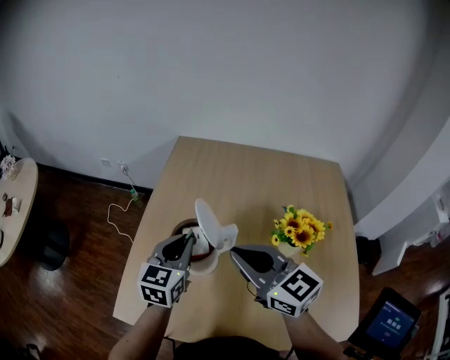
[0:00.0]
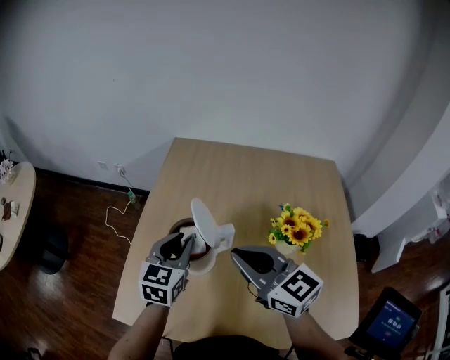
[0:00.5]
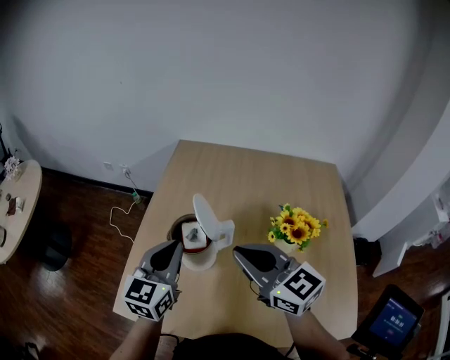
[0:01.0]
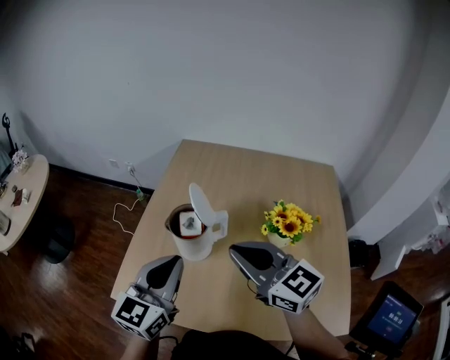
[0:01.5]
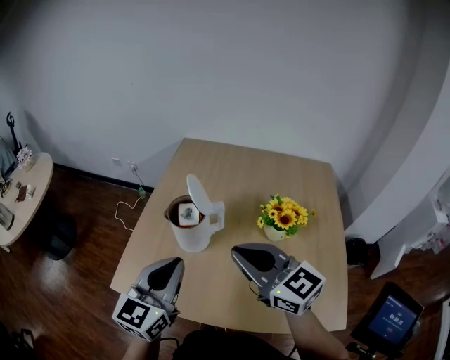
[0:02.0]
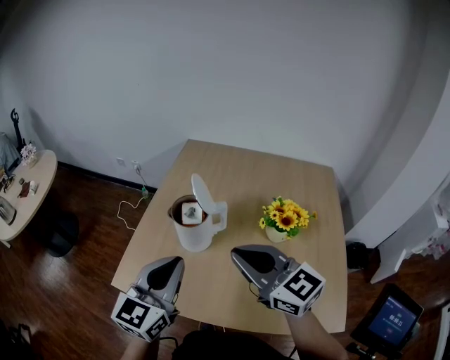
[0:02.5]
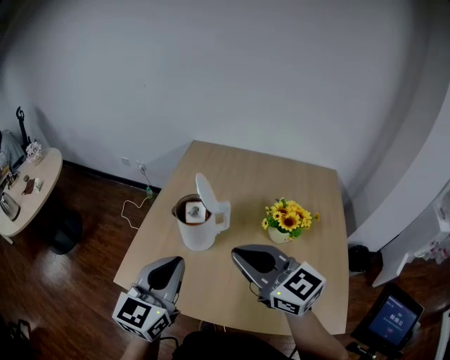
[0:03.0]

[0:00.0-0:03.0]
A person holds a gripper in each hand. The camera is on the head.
0:00.0 to 0:01.5: The left gripper travels backward and upward by roughly 20 cm, while the right gripper travels backward by some 5 cm.
0:01.5 to 0:03.0: The two grippers go some 5 cm backward.

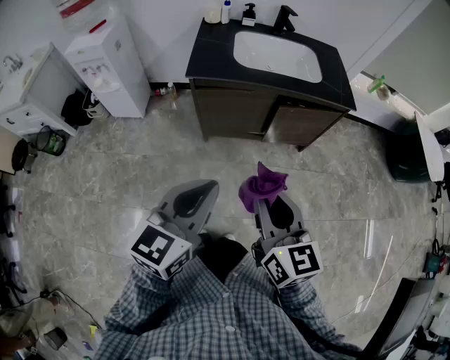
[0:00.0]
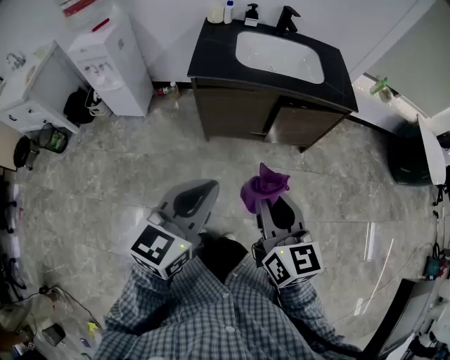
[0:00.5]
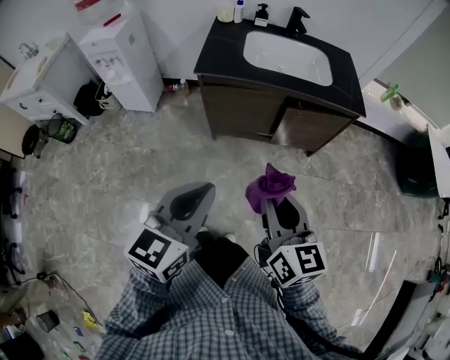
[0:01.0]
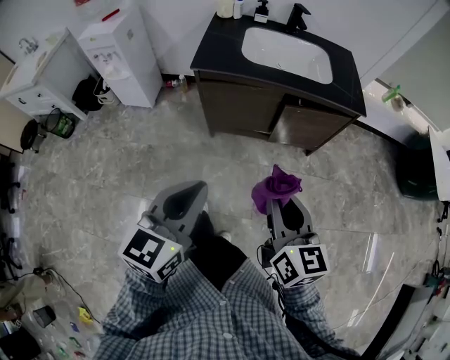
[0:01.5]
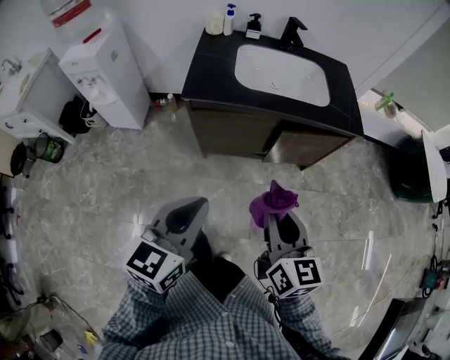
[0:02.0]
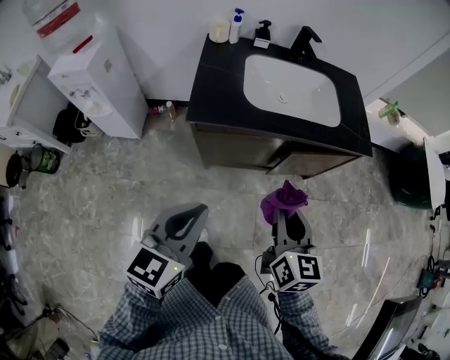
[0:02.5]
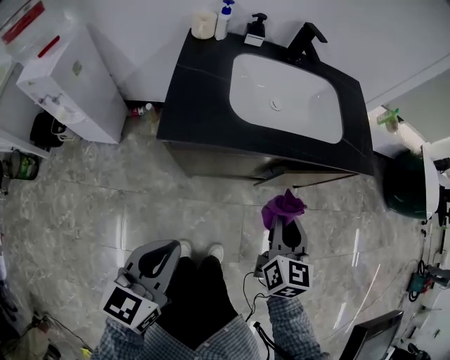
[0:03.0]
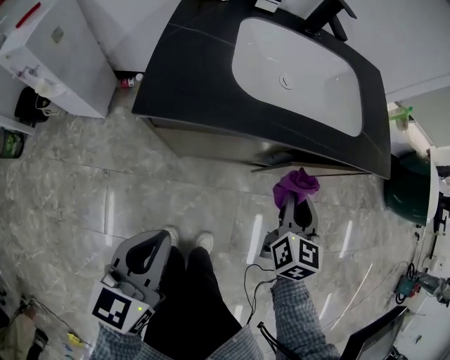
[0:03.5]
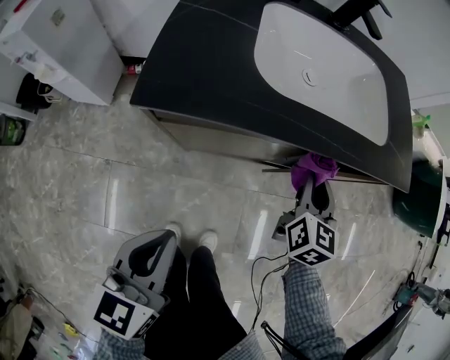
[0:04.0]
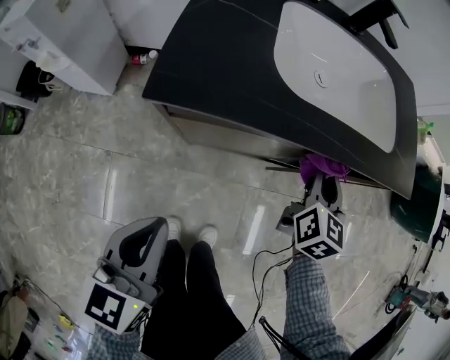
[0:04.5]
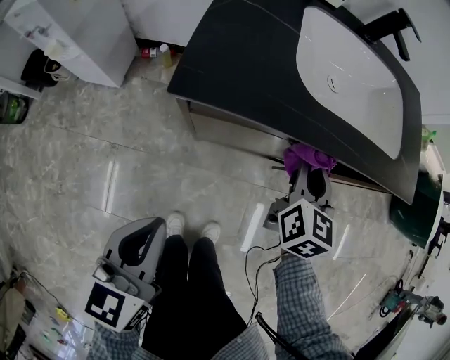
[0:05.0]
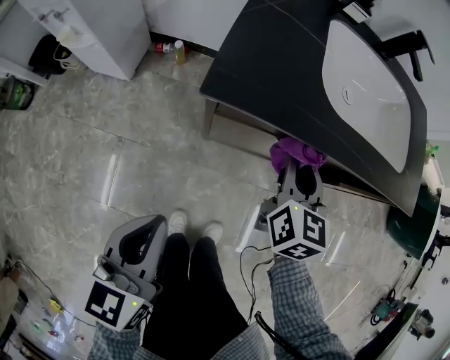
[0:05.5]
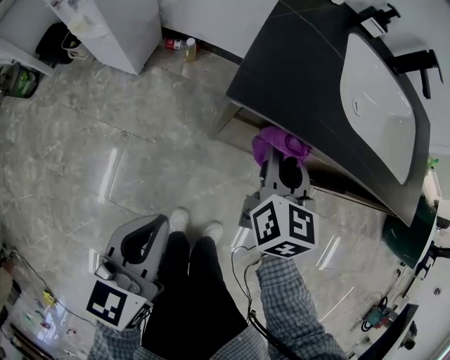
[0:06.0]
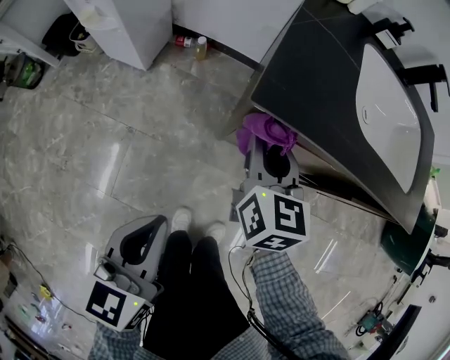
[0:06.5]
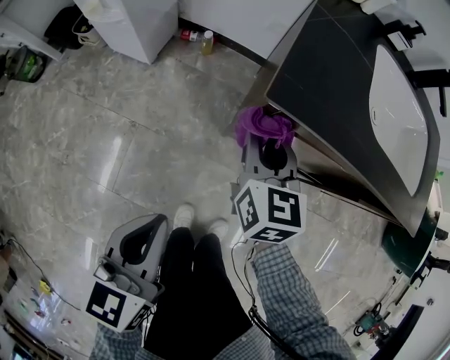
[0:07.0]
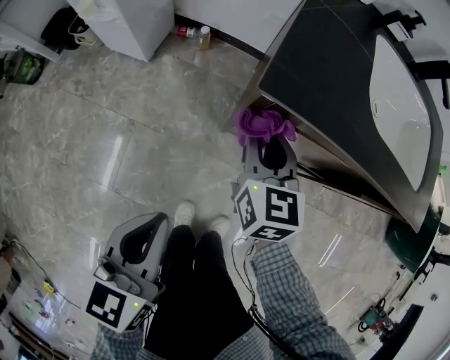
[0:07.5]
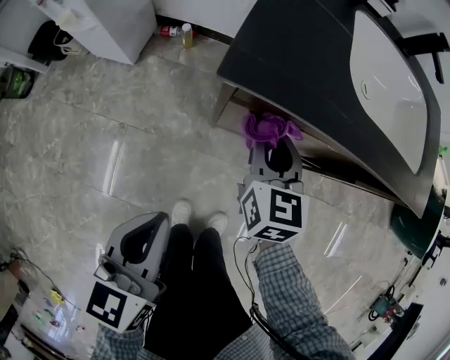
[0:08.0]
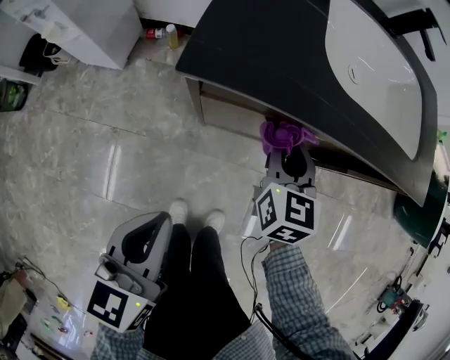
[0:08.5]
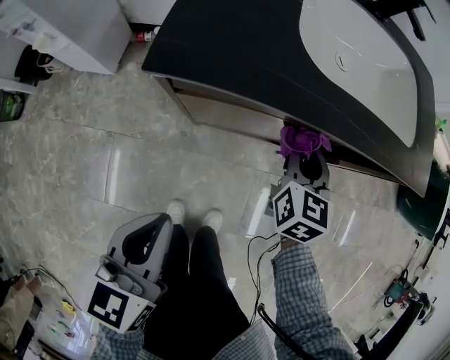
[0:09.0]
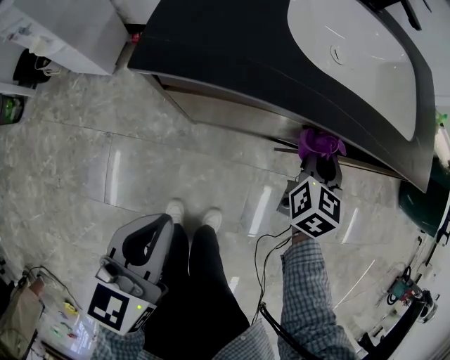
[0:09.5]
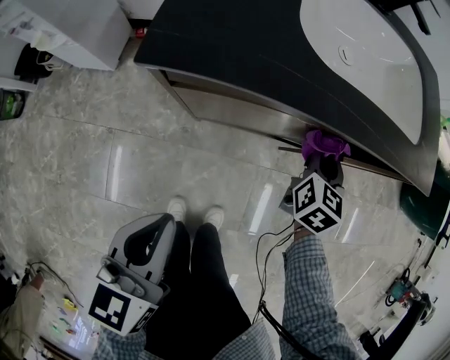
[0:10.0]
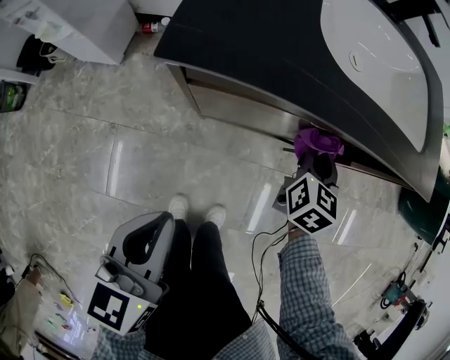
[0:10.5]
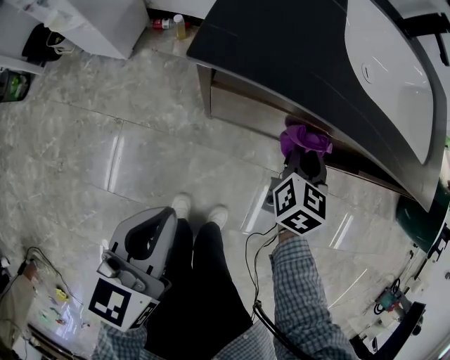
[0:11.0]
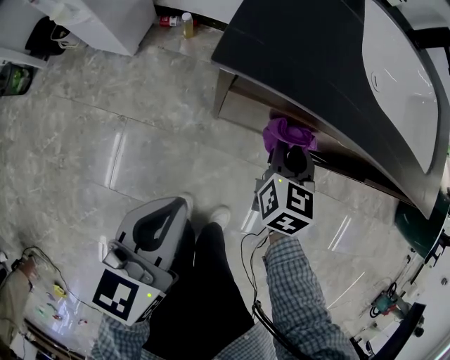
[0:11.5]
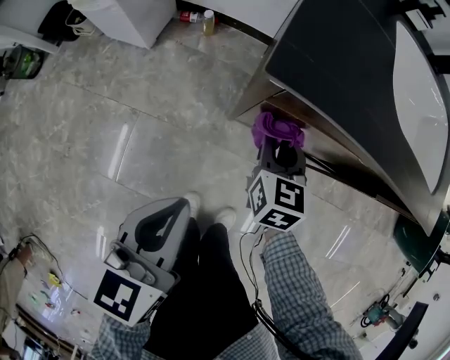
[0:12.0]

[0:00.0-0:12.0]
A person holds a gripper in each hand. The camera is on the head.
0:00.0 to 0:02.0: Both grippers travel together forward, approximately 10 cm.
0:02.0 to 0:04.0: The left gripper moves downward, forward and to the left, approximately 30 cm. The right gripper goes about 40 cm forward and downward, and rotates roughly 20 degrees.
0:04.0 to 0:06.0: The left gripper goes roughly 15 cm to the left; the right gripper heads to the left, covering about 25 cm.
0:06.0 to 0:08.0: The right gripper goes approximately 5 cm downward, and moves roughly 10 cm to the left and comes back.
0:08.0 to 0:10.0: The right gripper heads to the right, covering roughly 25 cm, and rotates approximately 30 degrees, while the left gripper heads to the right, covering some 10 cm.
0:10.0 to 0:12.0: The right gripper goes approximately 25 cm to the left, and rotates about 30 degrees. Meanwhile the left gripper heads to the left, covering about 10 cm.

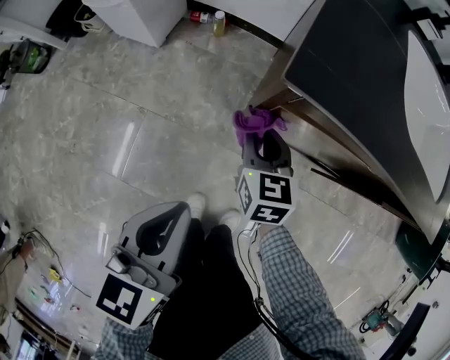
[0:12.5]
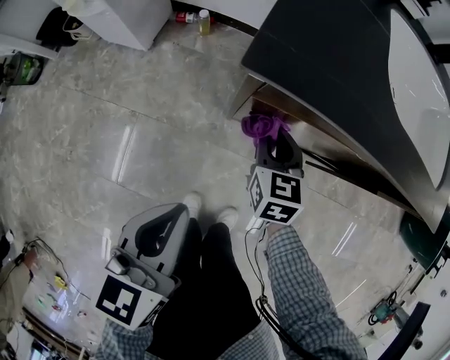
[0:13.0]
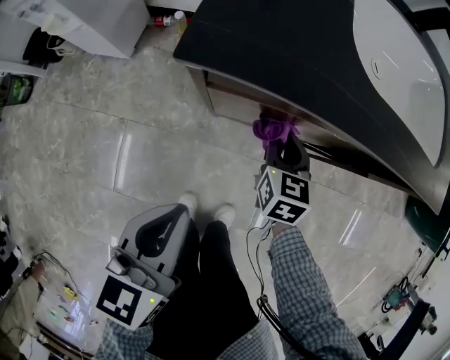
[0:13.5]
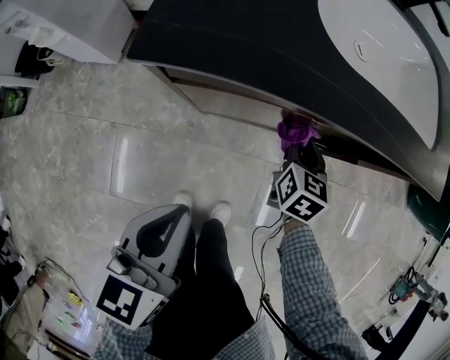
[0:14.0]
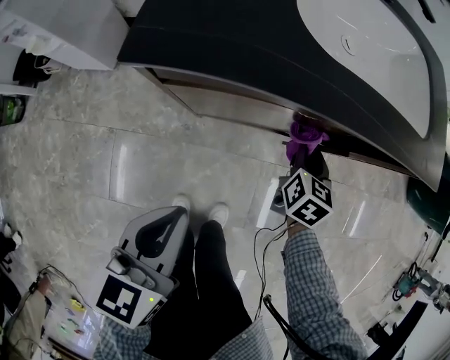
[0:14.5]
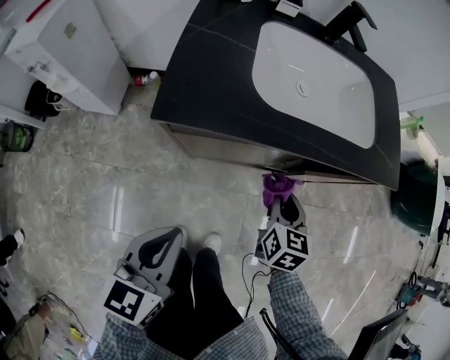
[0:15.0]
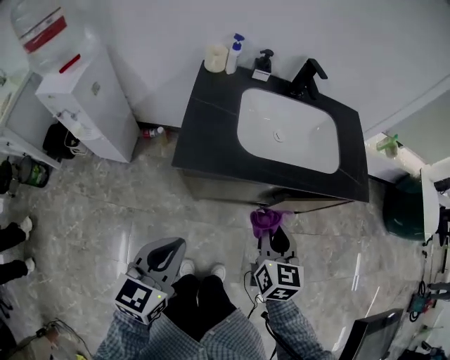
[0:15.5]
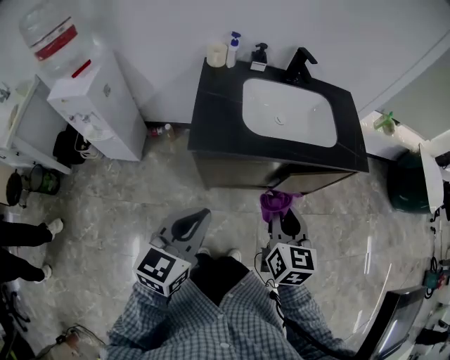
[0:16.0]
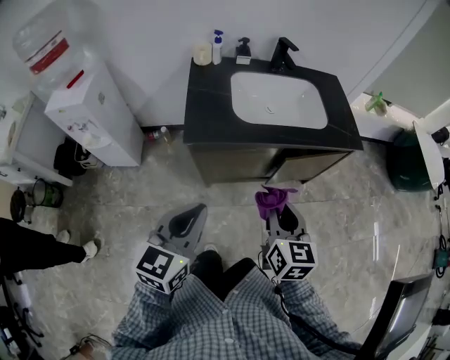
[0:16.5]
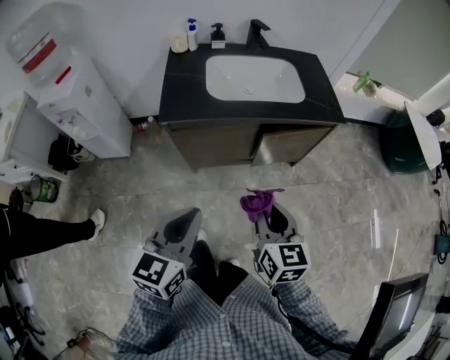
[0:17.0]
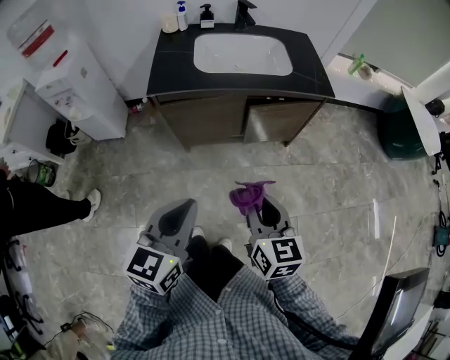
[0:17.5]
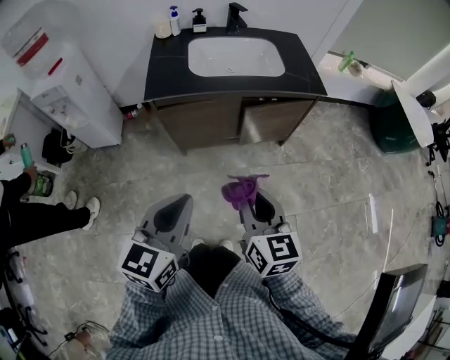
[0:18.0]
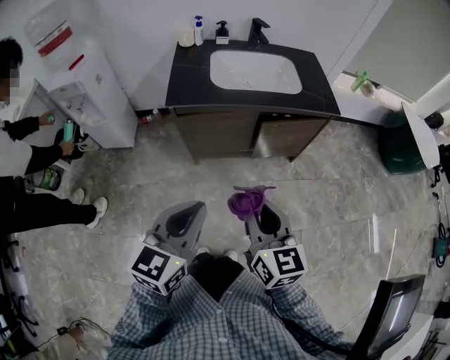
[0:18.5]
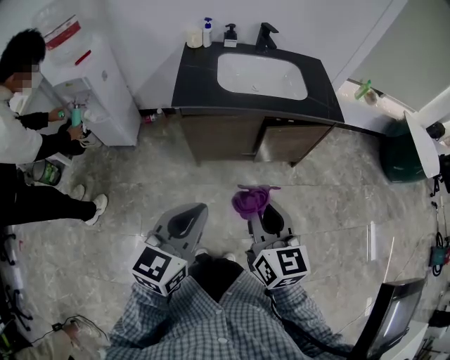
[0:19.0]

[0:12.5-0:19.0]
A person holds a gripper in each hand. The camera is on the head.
0:12.5 to 0:14.5: The left gripper shifts by some 15 cm. Meanwhile the right gripper ends up about 35 cm from where it was, and changes its angle by some 40 degrees.
0:14.5 to 0:17.0: The right gripper is displaced upward and backward by some 50 cm, and turns by approximately 20 degrees; the left gripper heads upward and backward, covering about 30 cm.
0:17.0 to 0:19.0: The left gripper moves backward, approximately 10 cm; the right gripper is displaced backward and upward by about 10 cm.

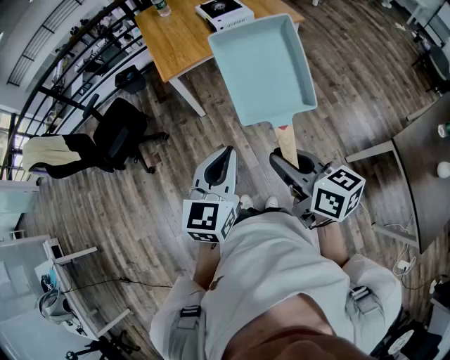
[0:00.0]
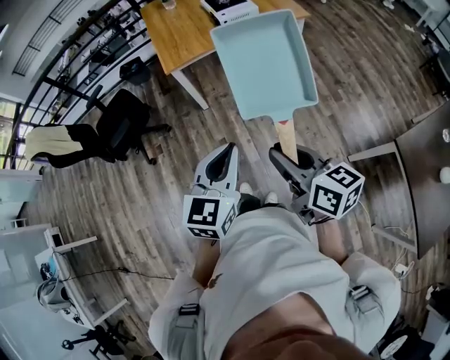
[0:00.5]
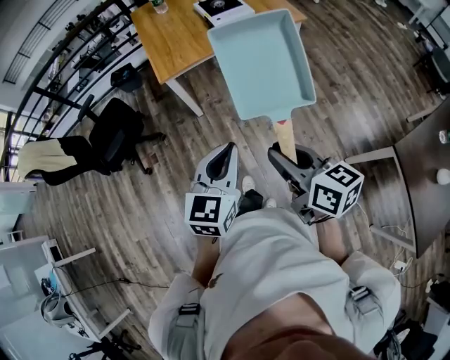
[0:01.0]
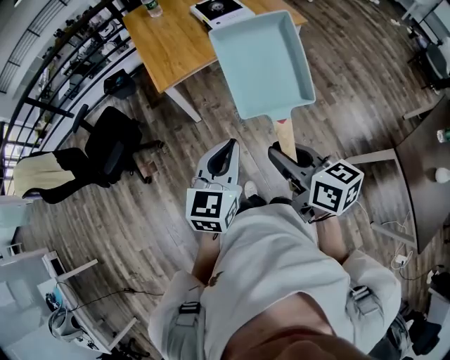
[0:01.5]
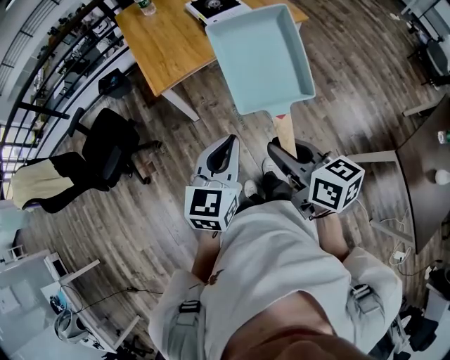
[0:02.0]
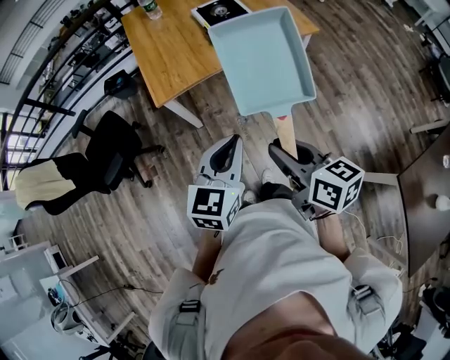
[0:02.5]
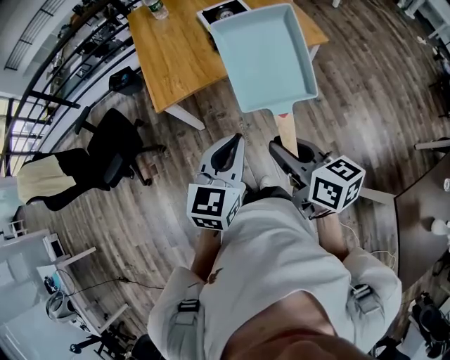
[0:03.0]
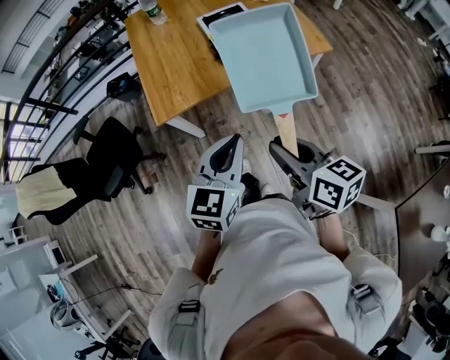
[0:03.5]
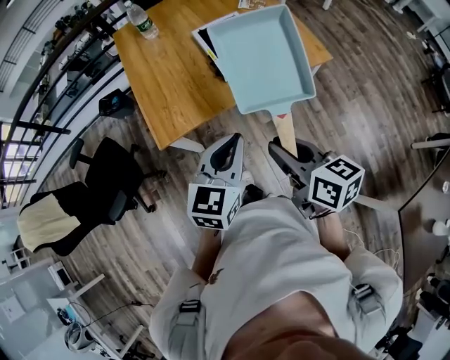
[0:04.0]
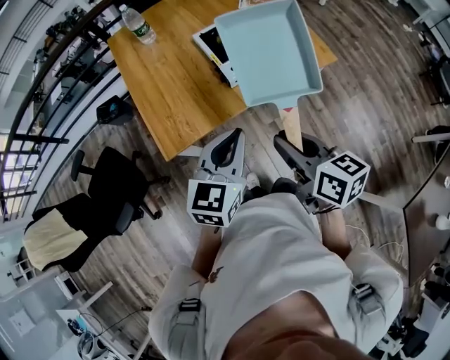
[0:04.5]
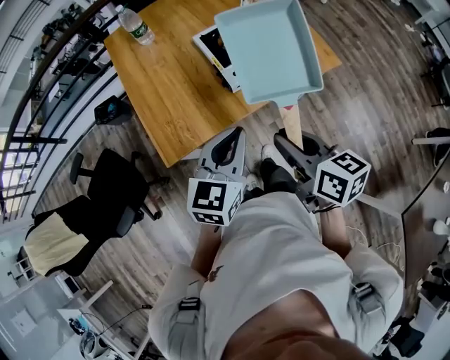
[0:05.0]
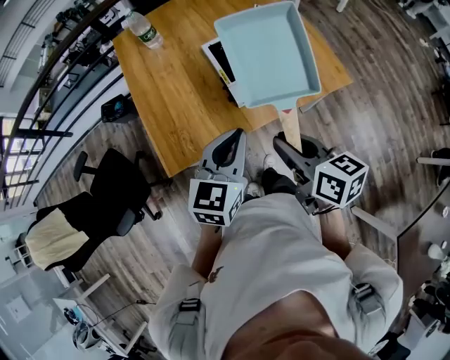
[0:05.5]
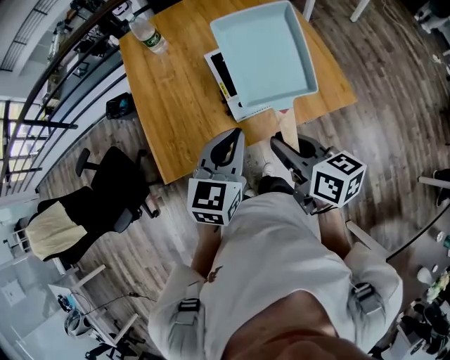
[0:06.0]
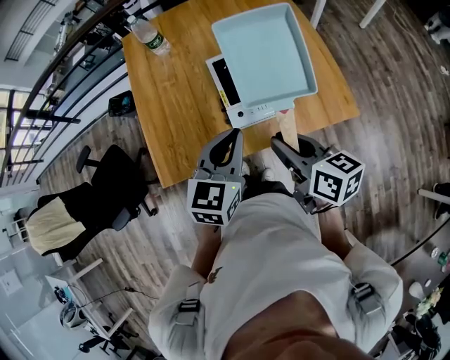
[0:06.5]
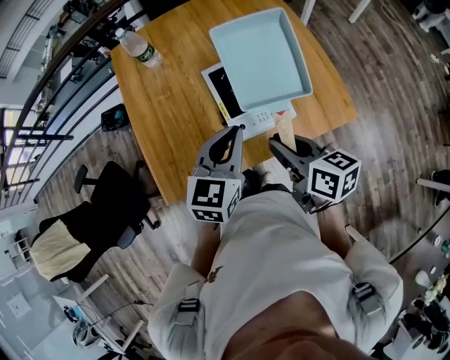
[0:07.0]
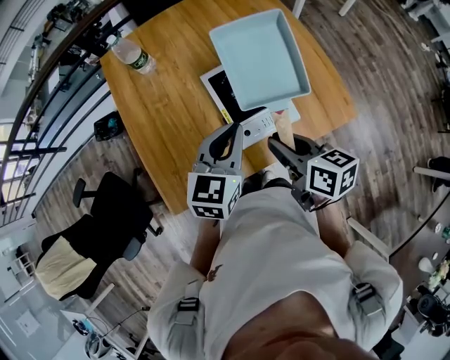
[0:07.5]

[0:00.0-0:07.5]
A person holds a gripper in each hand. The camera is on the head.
0:00.0 to 0:02.0: The grippers both shift forward by roughly 15 cm.
0:02.0 to 0:04.0: The two grippers go about 30 cm forward.
0:04.0 to 0:05.5: Both grippers move forward, approximately 15 cm.
0:05.5 to 0:07.5: The two grippers go roughly 20 cm forward.
